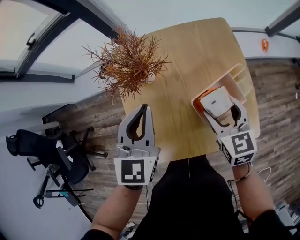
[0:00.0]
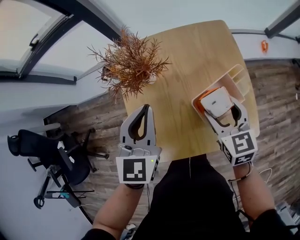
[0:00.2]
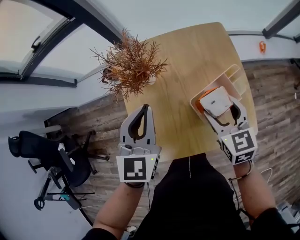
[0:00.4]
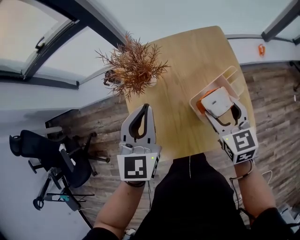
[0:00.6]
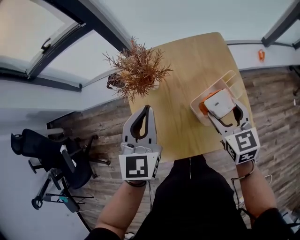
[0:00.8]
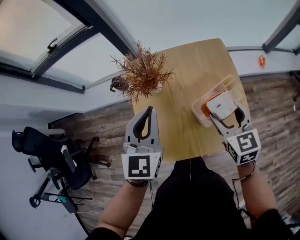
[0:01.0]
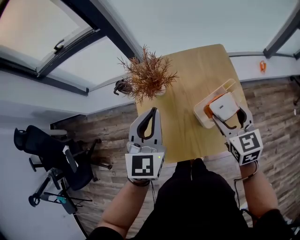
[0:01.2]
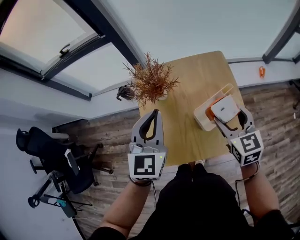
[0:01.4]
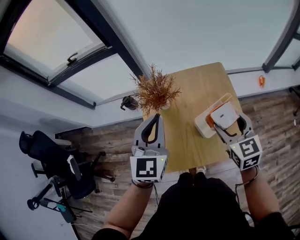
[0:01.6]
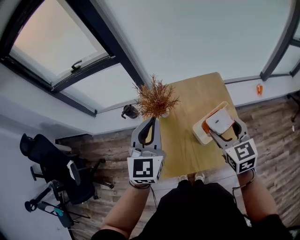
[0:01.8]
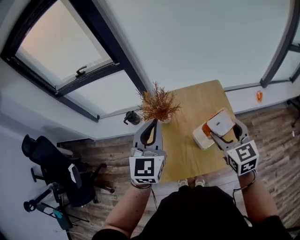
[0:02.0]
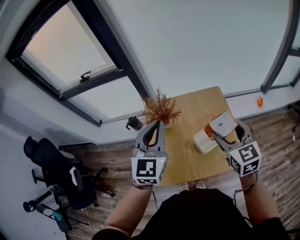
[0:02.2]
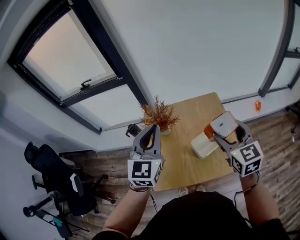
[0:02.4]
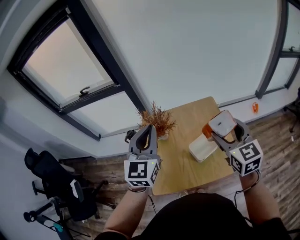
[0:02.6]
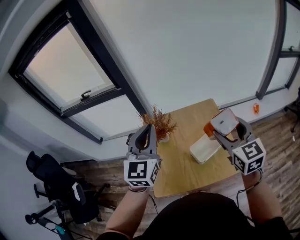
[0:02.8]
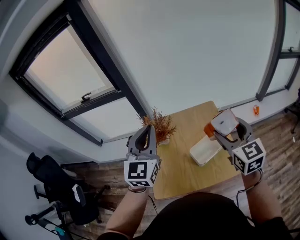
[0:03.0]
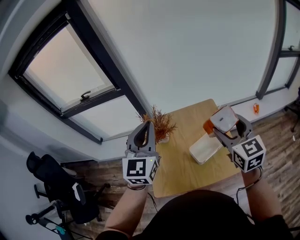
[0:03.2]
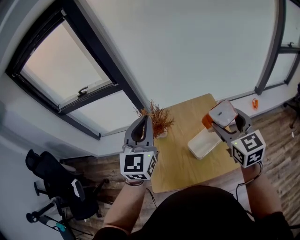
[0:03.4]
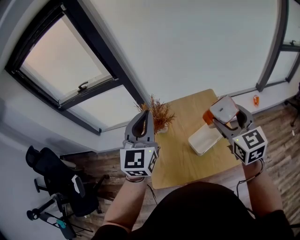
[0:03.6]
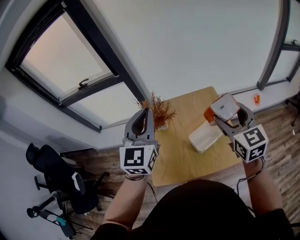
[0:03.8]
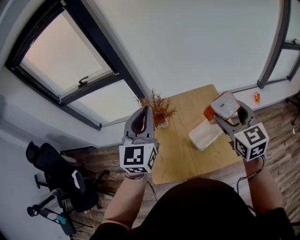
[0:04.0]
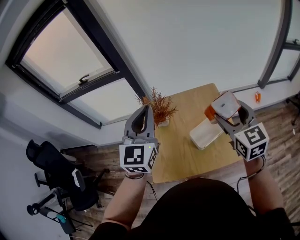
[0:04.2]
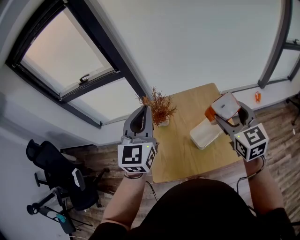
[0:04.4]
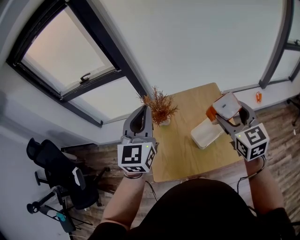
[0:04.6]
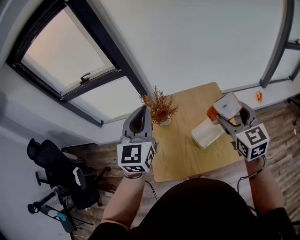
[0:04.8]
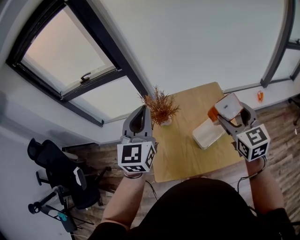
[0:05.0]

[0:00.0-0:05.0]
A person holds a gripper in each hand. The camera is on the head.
0:00.0 to 0:01.6: The two grippers go some 15 cm upward.
0:01.6 to 0:03.4: Both grippers travel together upward, roughly 15 cm.
0:03.4 to 0:05.0: The grippers stay close to where they were, moving slightly.

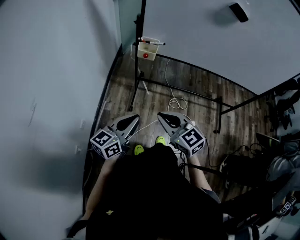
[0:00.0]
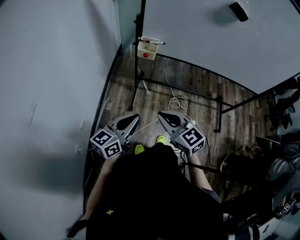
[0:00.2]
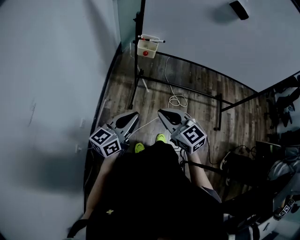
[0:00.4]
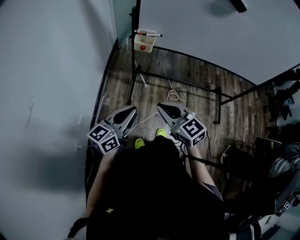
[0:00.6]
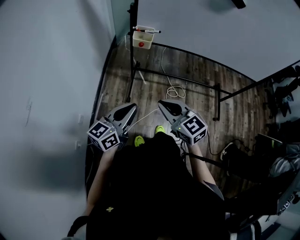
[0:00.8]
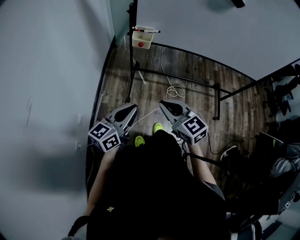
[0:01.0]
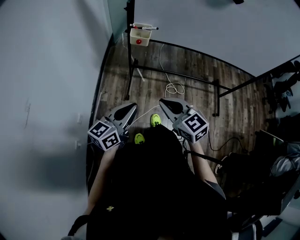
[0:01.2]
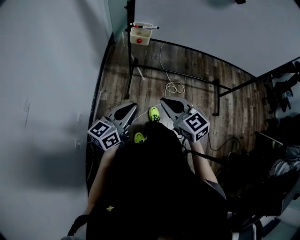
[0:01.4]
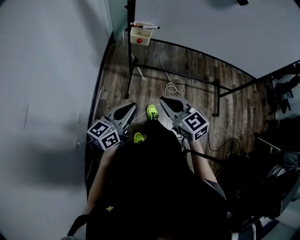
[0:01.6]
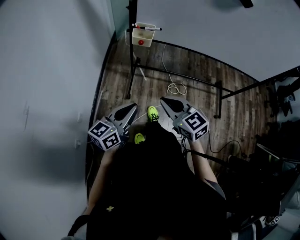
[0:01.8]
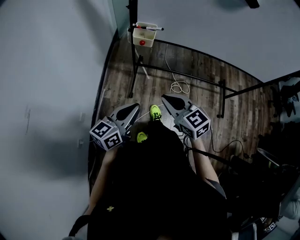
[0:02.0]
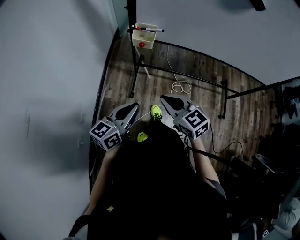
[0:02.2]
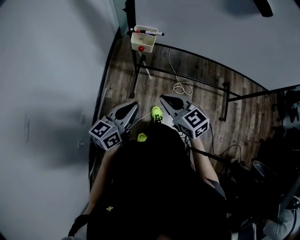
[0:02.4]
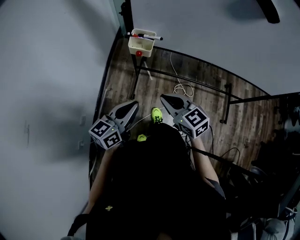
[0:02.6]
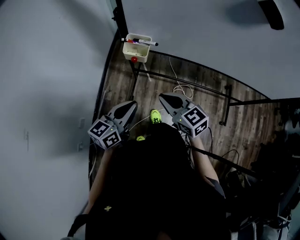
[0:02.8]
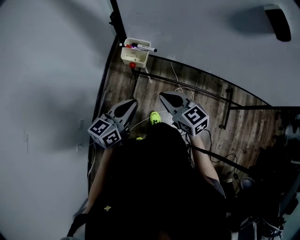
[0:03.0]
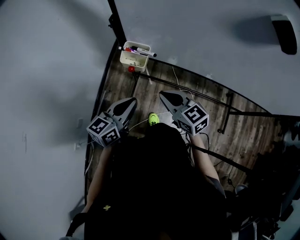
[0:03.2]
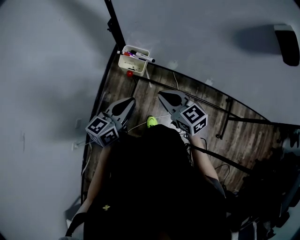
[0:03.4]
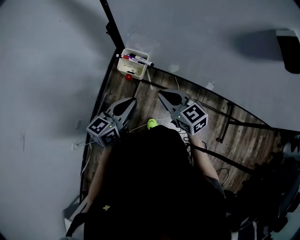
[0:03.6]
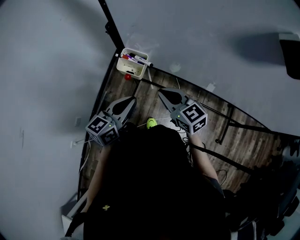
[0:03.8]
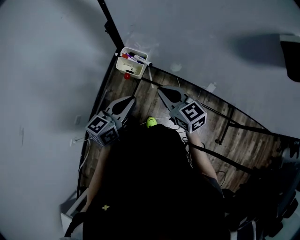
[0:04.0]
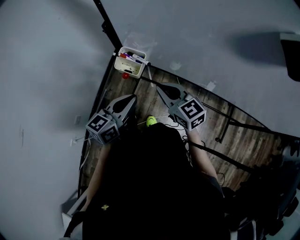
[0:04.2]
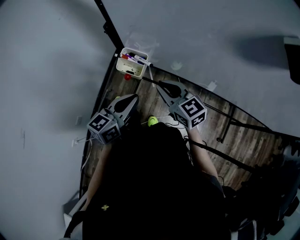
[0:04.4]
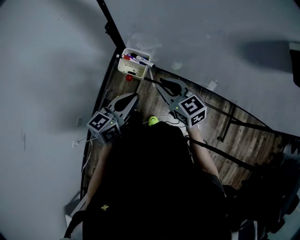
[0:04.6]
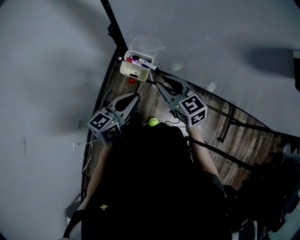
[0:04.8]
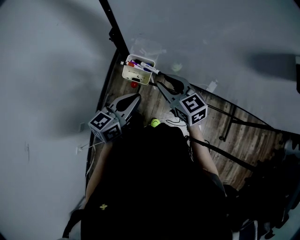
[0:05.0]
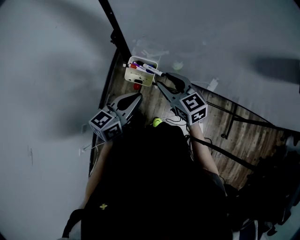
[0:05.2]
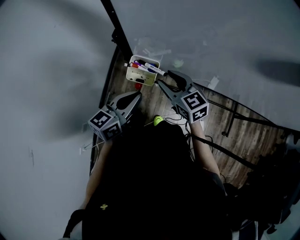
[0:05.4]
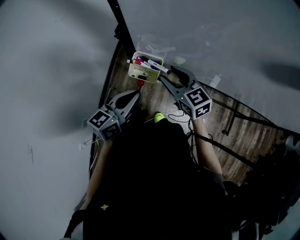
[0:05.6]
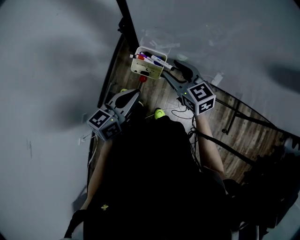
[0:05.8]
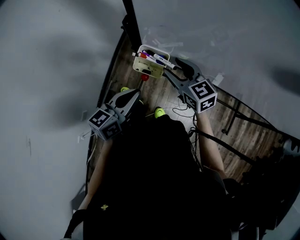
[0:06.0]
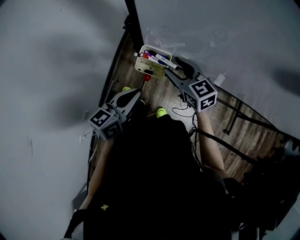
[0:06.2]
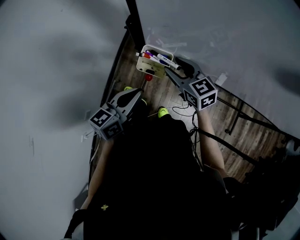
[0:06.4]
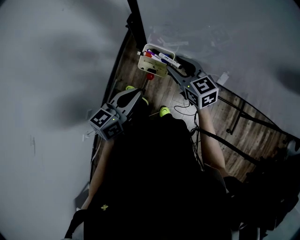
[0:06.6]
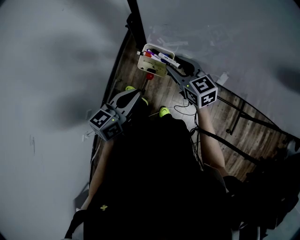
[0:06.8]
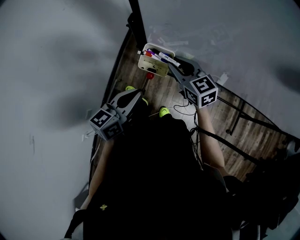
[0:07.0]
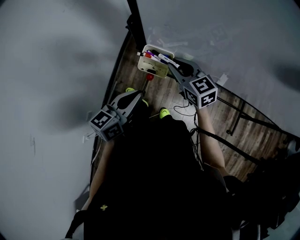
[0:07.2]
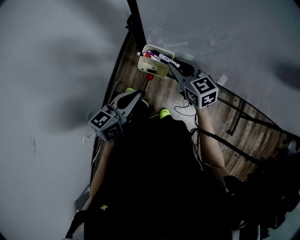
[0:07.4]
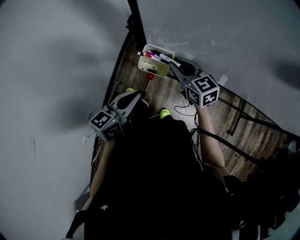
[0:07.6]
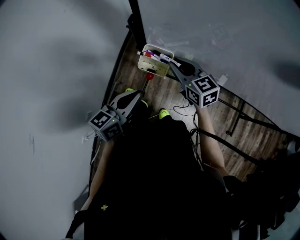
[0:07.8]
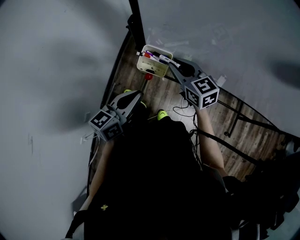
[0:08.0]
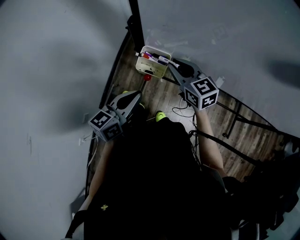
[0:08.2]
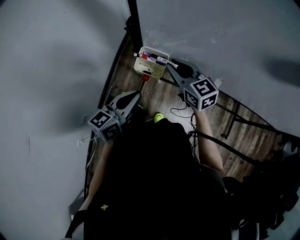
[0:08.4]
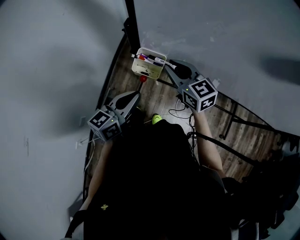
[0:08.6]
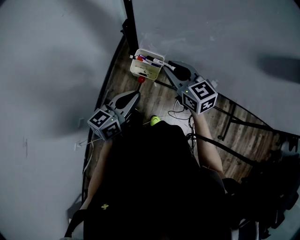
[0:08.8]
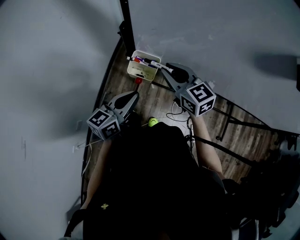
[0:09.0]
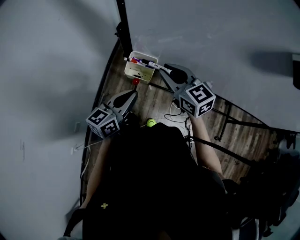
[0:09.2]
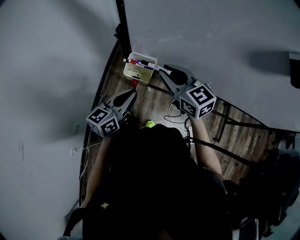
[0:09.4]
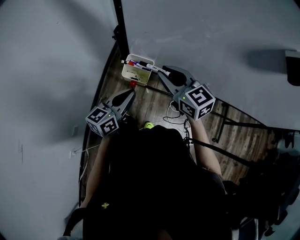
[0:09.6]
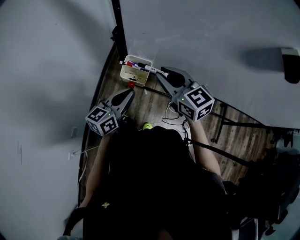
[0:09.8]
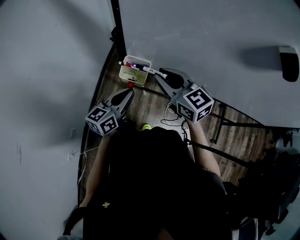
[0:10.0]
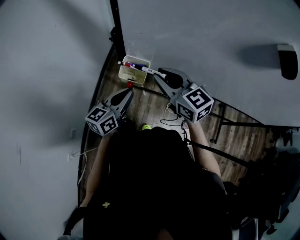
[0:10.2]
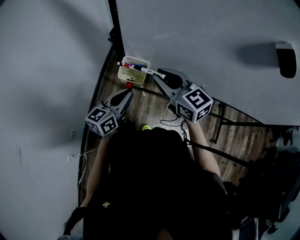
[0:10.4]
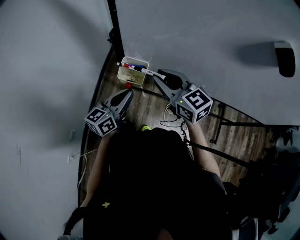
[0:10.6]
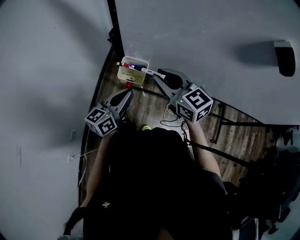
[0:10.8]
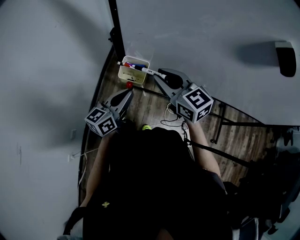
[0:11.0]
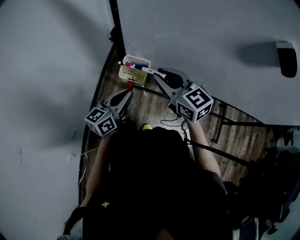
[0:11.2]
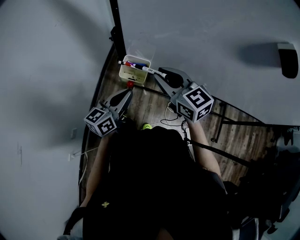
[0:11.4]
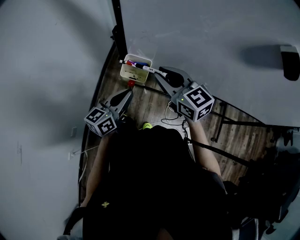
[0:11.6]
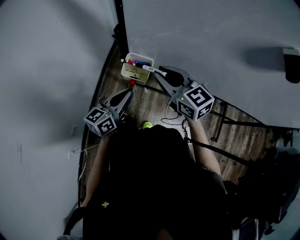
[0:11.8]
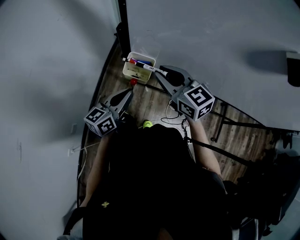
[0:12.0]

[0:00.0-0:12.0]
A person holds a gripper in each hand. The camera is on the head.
0:00.0 to 0:01.6: The grippers make only small movements.
0:01.6 to 0:03.0: The two grippers go about 20 cm forward.
0:03.0 to 0:04.4: The left gripper heads forward and to the right, covering roughly 10 cm, while the right gripper is displaced forward by approximately 10 cm.
0:04.4 to 0:06.0: The right gripper shifts roughly 10 cm forward, and opens. The left gripper travels to the left by some 5 cm.
0:06.0 to 0:07.6: The right gripper closes up.
0:07.6 to 0:09.0: The right gripper shifts about 5 cm upward.
0:09.0 to 0:12.0: The grippers move only a little.

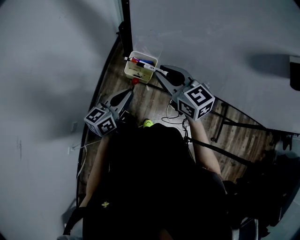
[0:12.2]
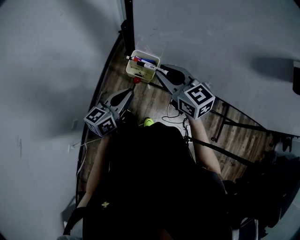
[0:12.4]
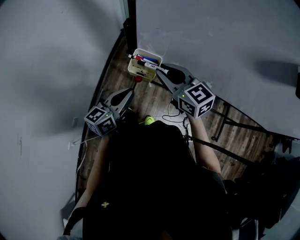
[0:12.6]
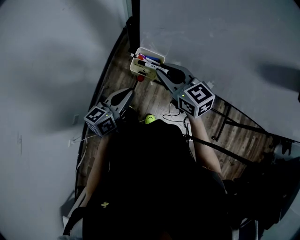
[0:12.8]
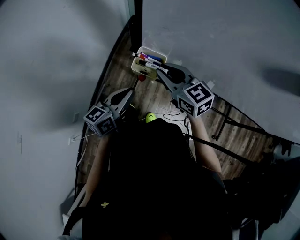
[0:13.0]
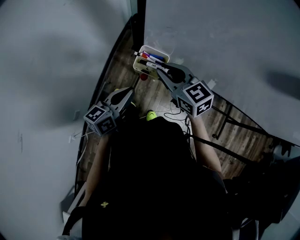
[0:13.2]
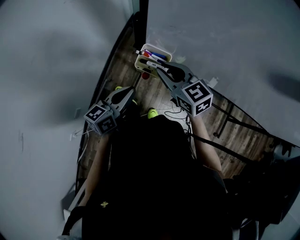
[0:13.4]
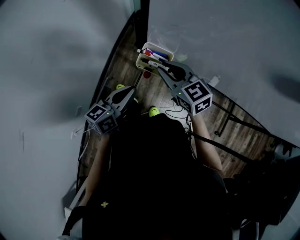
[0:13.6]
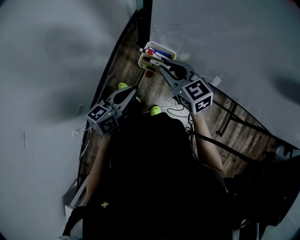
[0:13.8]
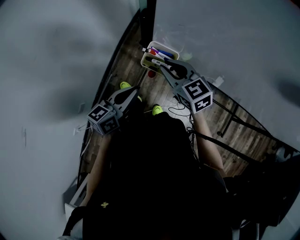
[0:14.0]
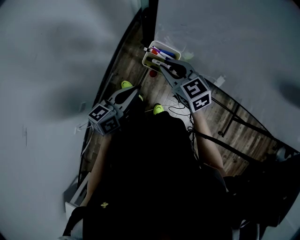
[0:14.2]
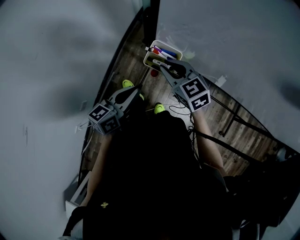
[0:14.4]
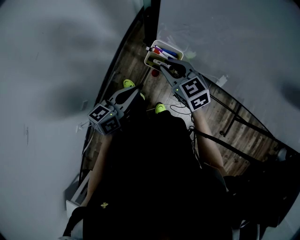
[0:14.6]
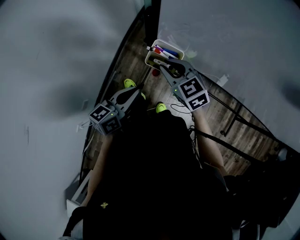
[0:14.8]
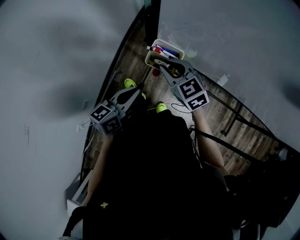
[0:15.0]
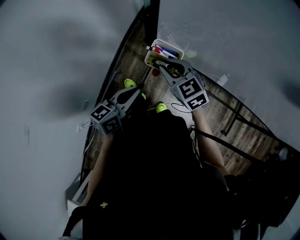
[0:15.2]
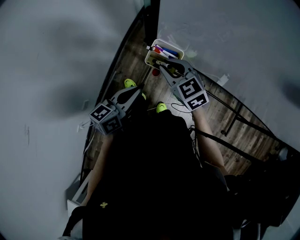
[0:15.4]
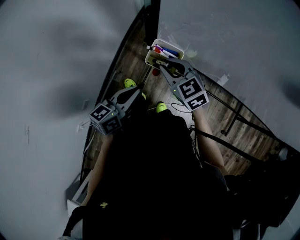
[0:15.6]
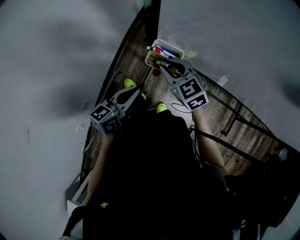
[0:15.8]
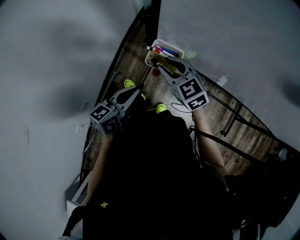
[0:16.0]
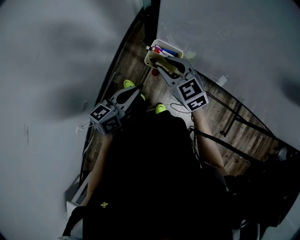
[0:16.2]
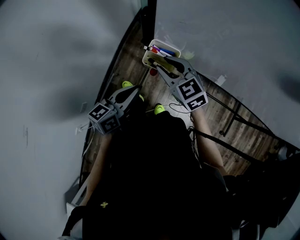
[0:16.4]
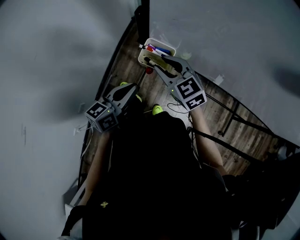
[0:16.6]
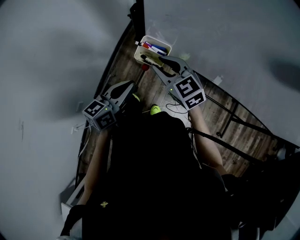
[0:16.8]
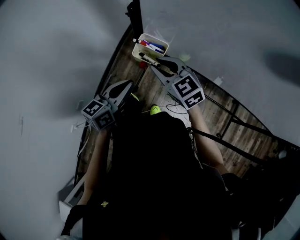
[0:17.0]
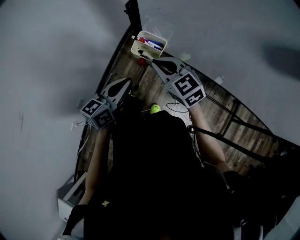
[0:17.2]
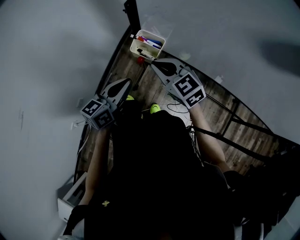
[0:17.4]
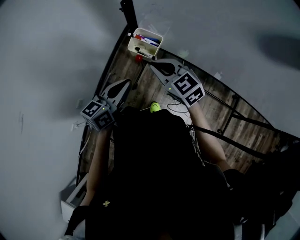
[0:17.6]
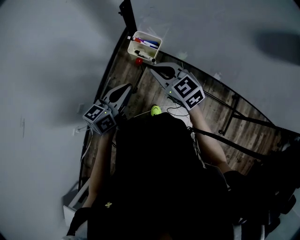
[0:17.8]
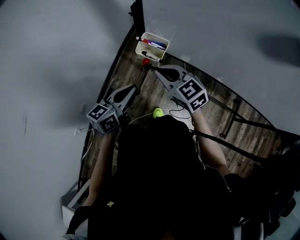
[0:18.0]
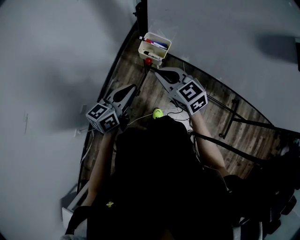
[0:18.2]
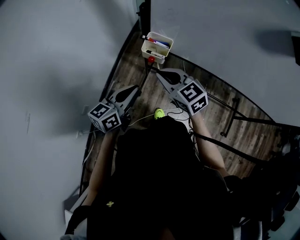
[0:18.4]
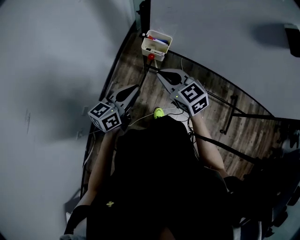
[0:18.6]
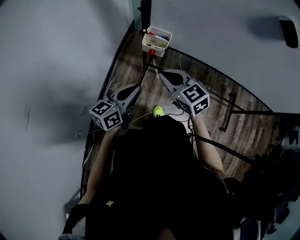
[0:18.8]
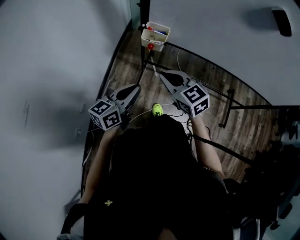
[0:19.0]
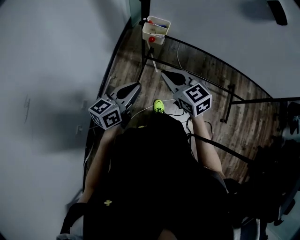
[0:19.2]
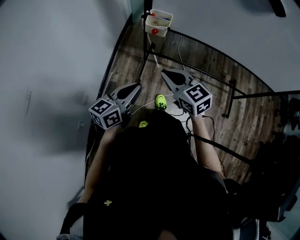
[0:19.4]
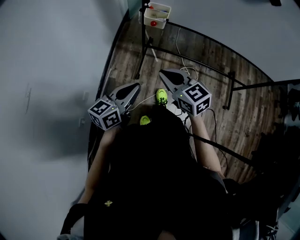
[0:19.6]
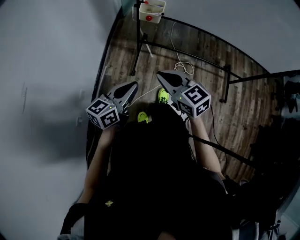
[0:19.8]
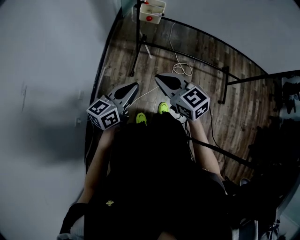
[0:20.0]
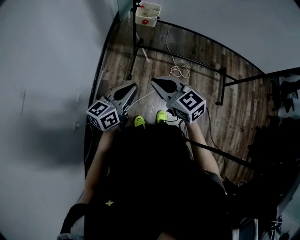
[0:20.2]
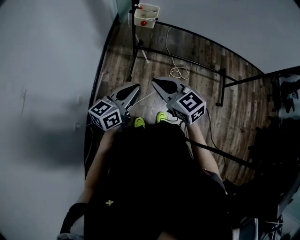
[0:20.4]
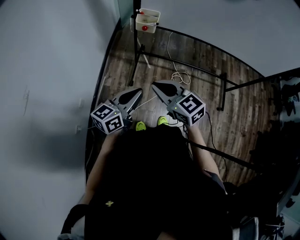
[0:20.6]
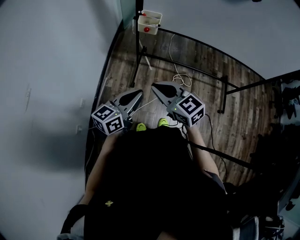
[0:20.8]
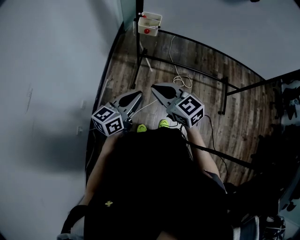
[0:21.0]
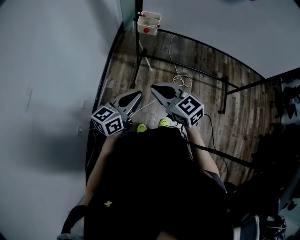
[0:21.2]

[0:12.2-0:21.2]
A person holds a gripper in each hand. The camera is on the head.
0:12.2 to 0:13.8: The right gripper heads downward, covering approximately 5 cm.
0:13.8 to 0:16.6: There are only small adjustments of the grippers.
0:16.6 to 0:18.2: Both grippers travel together backward, about 10 cm. The right gripper closes.
0:18.2 to 0:19.8: Both grippers travel together backward, roughly 25 cm.
0:19.8 to 0:21.2: The right gripper ends up roughly 5 cm from where it was.
